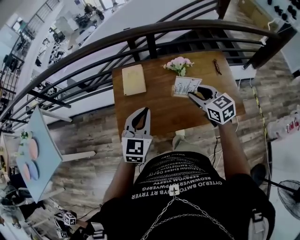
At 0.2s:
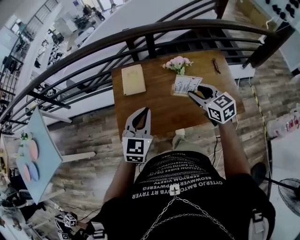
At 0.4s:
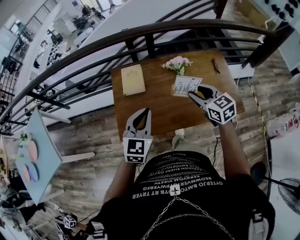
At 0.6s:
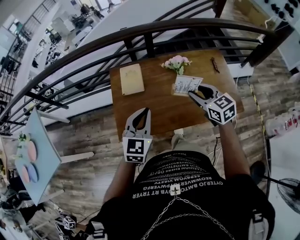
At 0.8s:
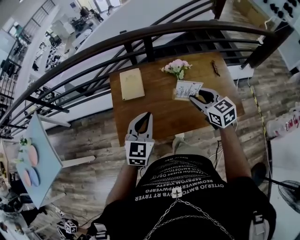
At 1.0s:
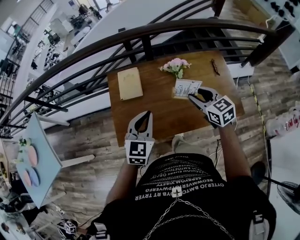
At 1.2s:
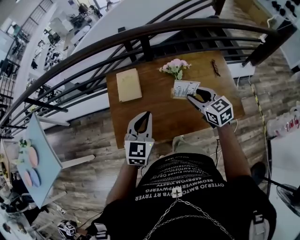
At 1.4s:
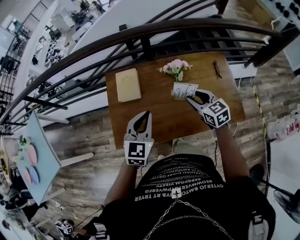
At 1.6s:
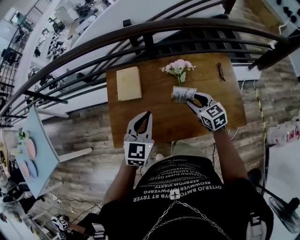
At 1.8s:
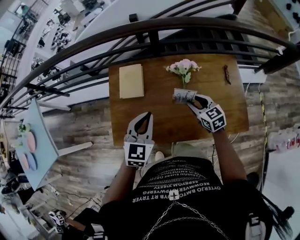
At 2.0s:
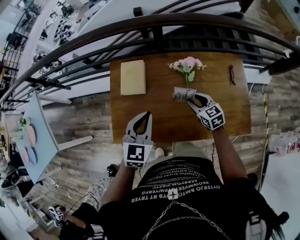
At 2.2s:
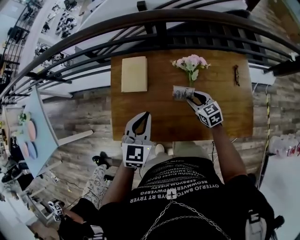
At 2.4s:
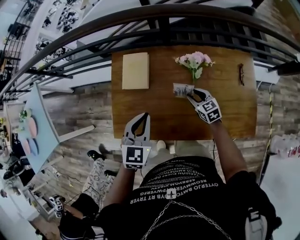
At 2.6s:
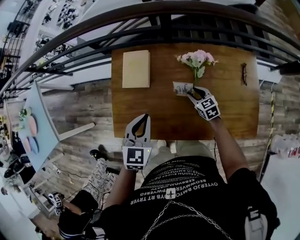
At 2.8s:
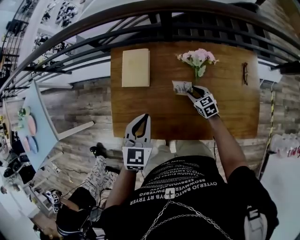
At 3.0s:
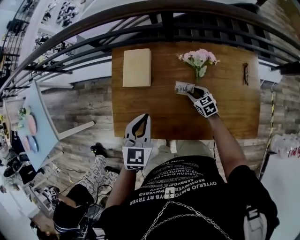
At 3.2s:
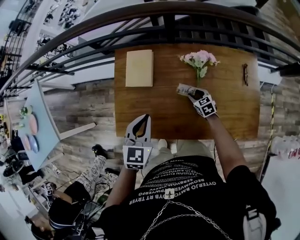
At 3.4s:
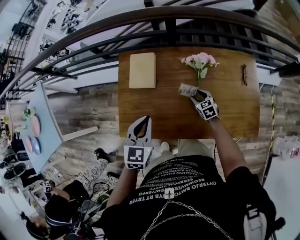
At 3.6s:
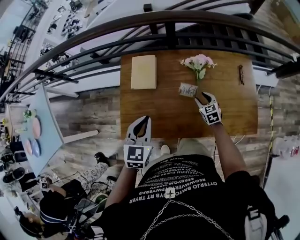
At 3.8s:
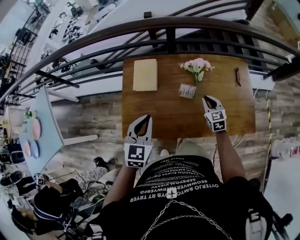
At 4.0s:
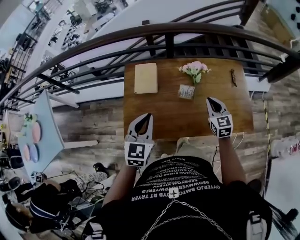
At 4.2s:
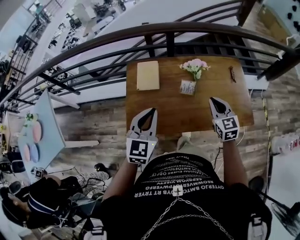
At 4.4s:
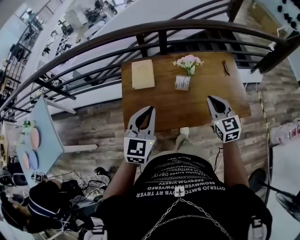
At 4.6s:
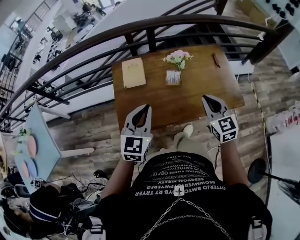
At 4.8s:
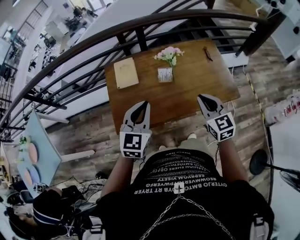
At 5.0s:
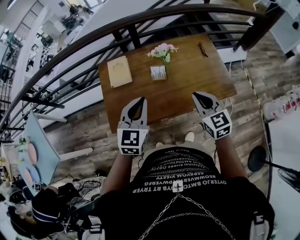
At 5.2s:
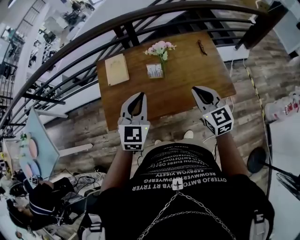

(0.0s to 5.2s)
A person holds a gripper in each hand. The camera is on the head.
0.0s - 1.8s: The right gripper goes about 15 cm downward and forward. The left gripper shifts about 10 cm forward and downward.
1.8s - 3.4s: The right gripper travels downward by about 20 cm, while the left gripper moves to the left, about 5 cm.
3.4s - 5.2s: The right gripper is displaced upward and backward by approximately 40 cm, rotates some 30 degrees, and closes, while the left gripper is displaced to the right, upward and backward by roughly 20 cm, and turns by roughly 20 degrees.

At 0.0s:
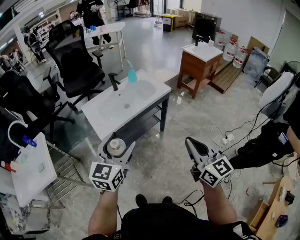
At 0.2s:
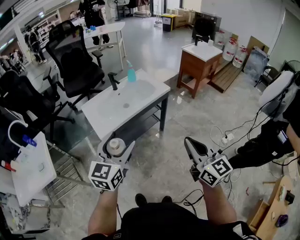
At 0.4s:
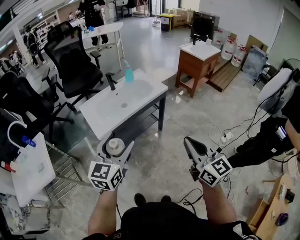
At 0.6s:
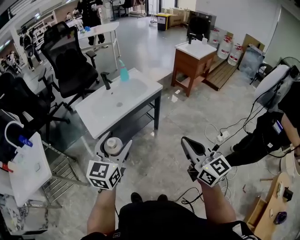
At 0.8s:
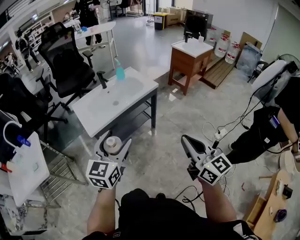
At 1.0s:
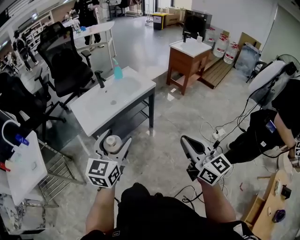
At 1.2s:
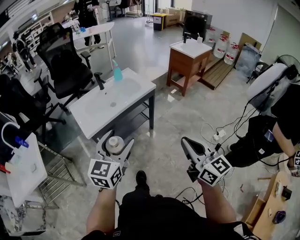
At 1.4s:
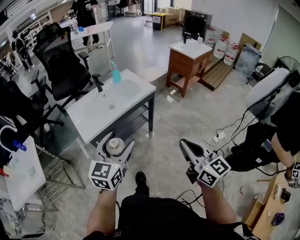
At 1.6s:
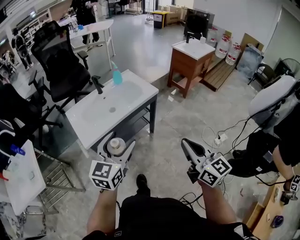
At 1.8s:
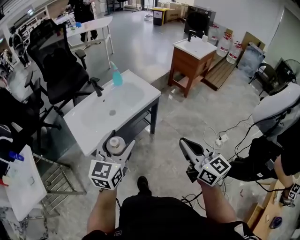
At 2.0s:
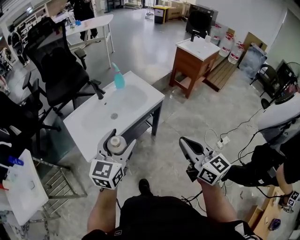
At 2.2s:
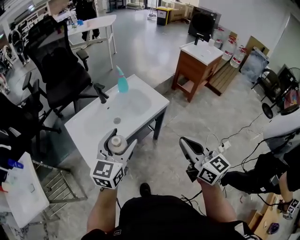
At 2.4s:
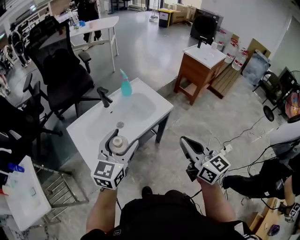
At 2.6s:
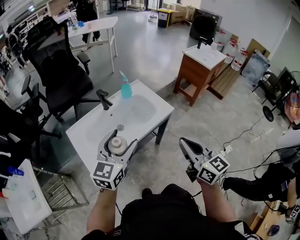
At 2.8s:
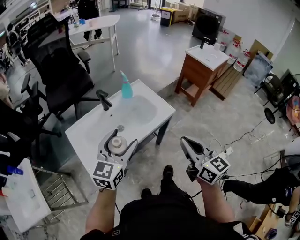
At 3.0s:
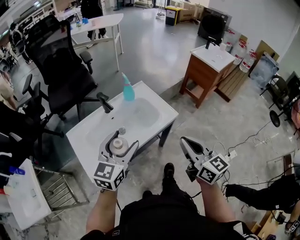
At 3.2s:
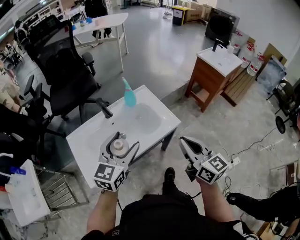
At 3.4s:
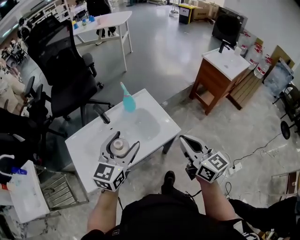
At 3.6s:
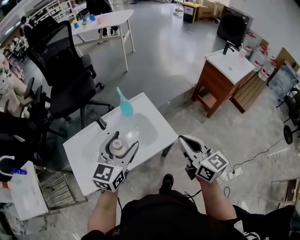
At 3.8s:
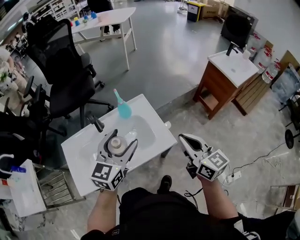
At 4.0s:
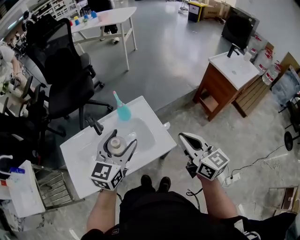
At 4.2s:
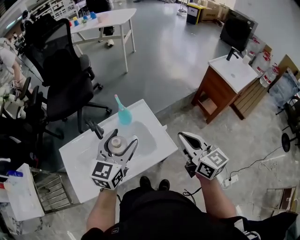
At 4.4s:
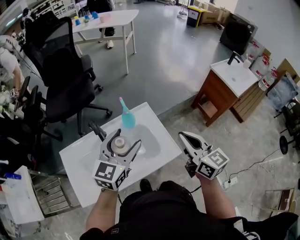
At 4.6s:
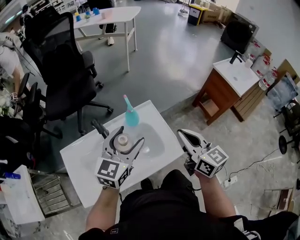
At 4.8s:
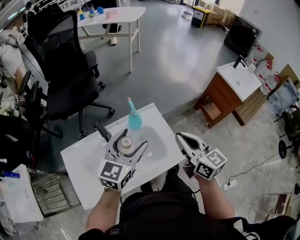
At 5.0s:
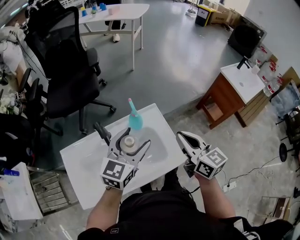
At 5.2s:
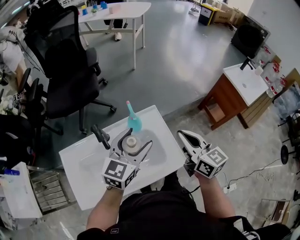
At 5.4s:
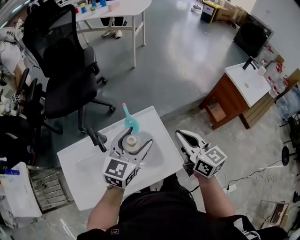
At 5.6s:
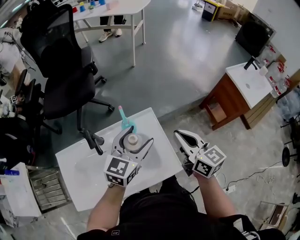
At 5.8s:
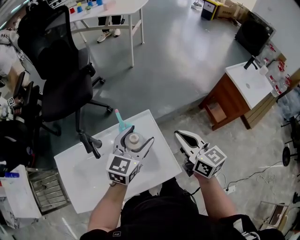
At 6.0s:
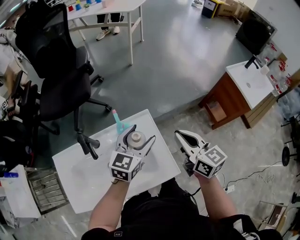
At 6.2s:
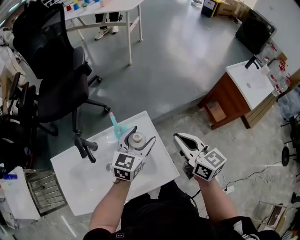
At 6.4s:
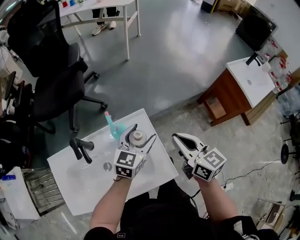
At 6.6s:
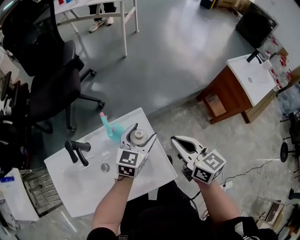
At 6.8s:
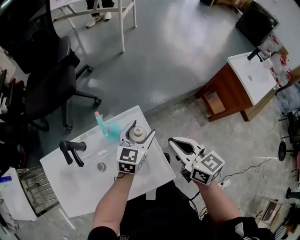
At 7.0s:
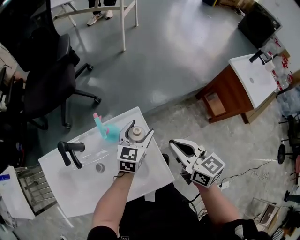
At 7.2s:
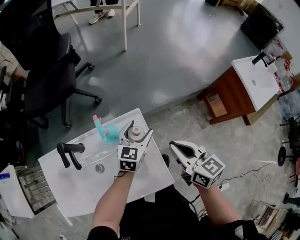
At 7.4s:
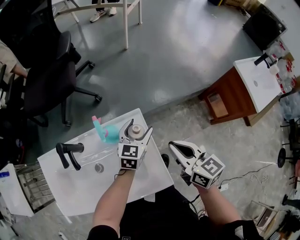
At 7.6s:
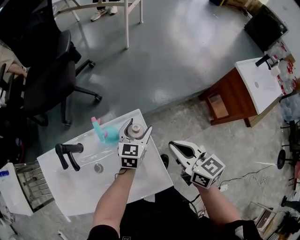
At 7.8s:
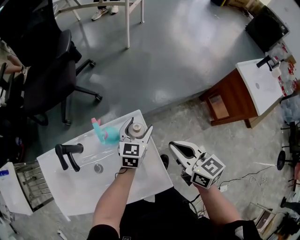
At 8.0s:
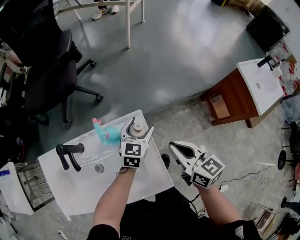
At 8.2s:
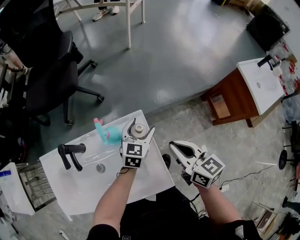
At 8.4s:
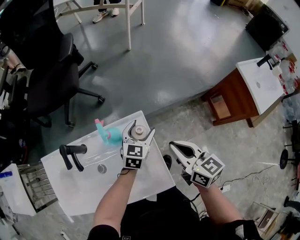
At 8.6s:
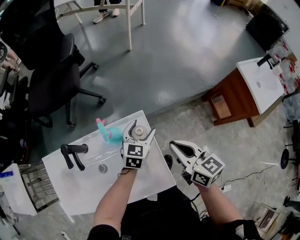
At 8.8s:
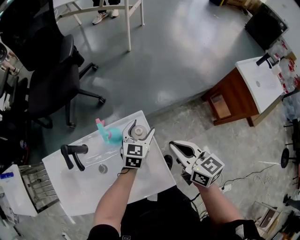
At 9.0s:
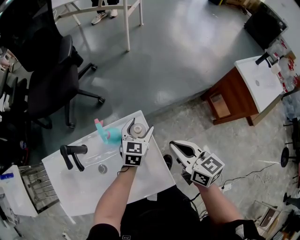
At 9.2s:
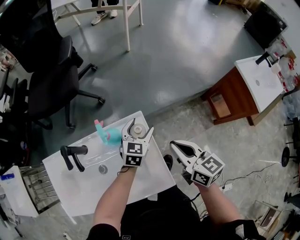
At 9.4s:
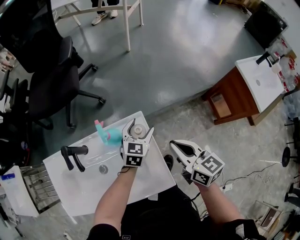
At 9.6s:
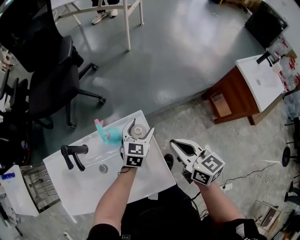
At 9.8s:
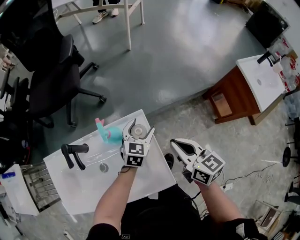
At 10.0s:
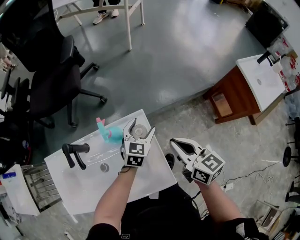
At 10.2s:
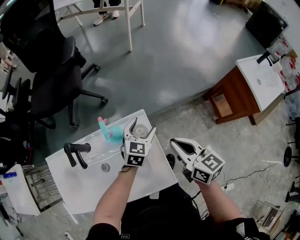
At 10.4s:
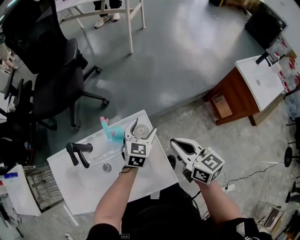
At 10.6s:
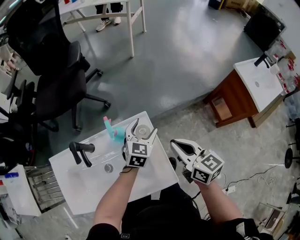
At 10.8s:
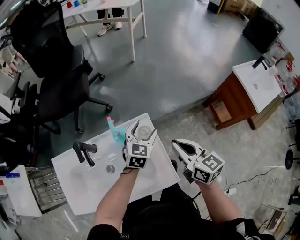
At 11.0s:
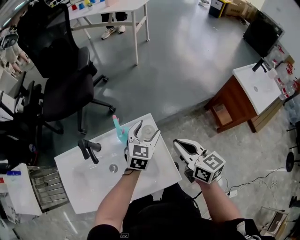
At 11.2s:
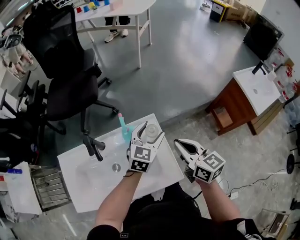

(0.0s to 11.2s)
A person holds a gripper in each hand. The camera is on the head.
0.0s - 1.6s: The two grippers go roughly 10 cm to the right and forward.
1.6s - 3.2s: The grippers both shift forward by approximately 35 cm.
3.2s - 4.8s: The two grippers go roughly 25 cm forward.
4.8s - 6.4s: The left gripper shifts about 25 cm forward, downward and to the right. Meanwhile the right gripper is displaced forward, to the right and downward by approximately 15 cm.
6.4s - 8.0s: The left gripper moves downward and forward, some 15 cm. Meanwhile the right gripper shifts approximately 5 cm downward.
8.0s - 9.6s: The grippers stay close to where they were, moving slightly.
9.6s - 11.2s: The right gripper shifts some 5 cm upward; the left gripper moves upward and backward, roughly 15 cm.

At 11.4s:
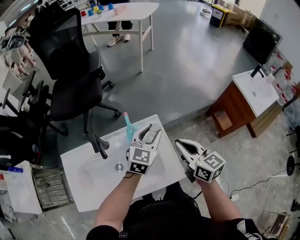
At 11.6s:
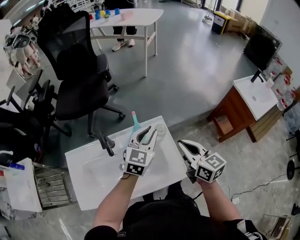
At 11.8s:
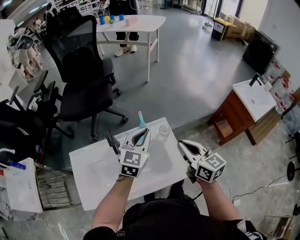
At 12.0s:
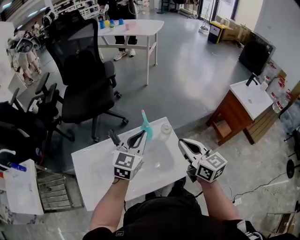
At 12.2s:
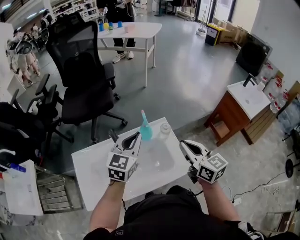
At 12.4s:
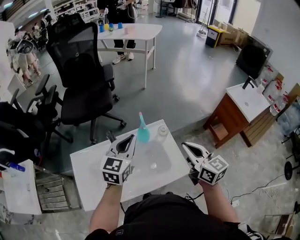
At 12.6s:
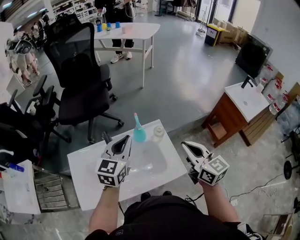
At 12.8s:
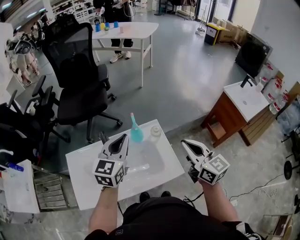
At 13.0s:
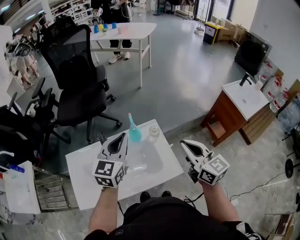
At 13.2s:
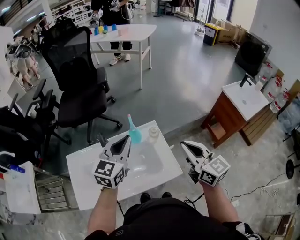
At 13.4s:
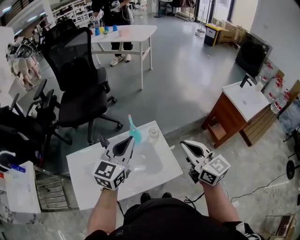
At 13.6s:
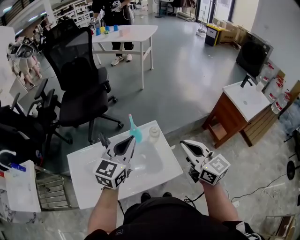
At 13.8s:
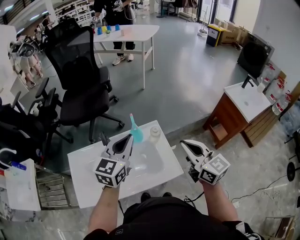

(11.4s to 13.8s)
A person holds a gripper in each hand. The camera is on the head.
11.4s - 12.6s: The left gripper moves to the left, upward and backward, approximately 20 cm, and closes. The right gripper is displaced upward and backward by roughly 10 cm.
12.6s - 13.8s: The left gripper ends up roughly 5 cm from where it was.

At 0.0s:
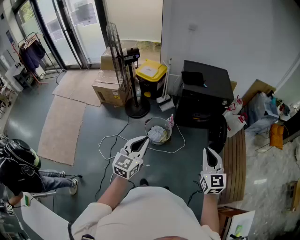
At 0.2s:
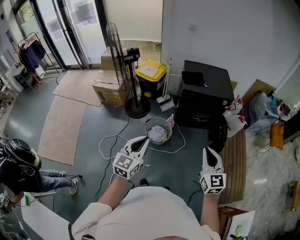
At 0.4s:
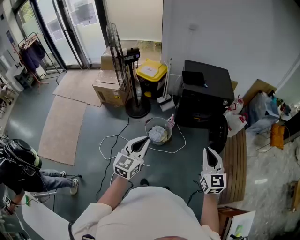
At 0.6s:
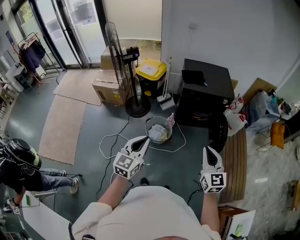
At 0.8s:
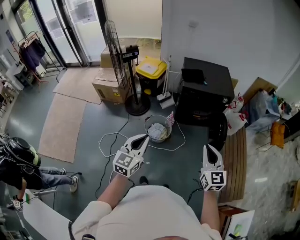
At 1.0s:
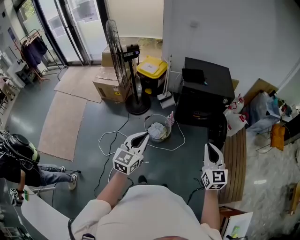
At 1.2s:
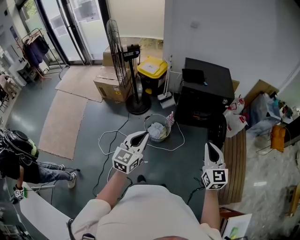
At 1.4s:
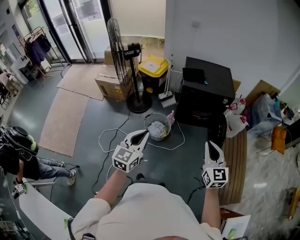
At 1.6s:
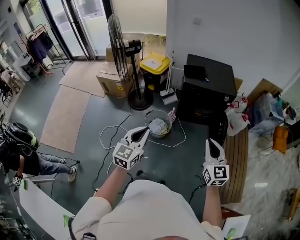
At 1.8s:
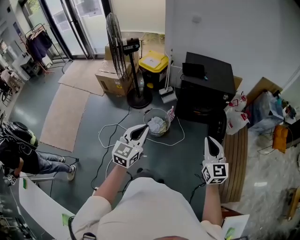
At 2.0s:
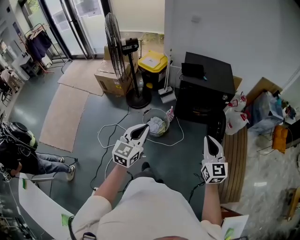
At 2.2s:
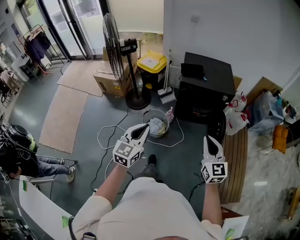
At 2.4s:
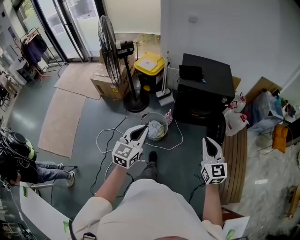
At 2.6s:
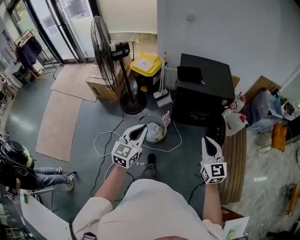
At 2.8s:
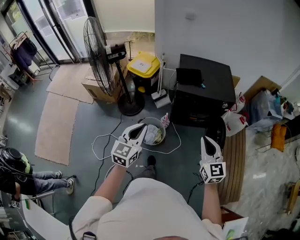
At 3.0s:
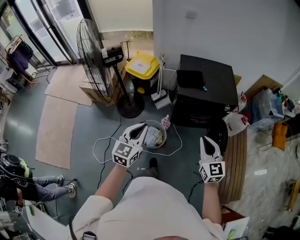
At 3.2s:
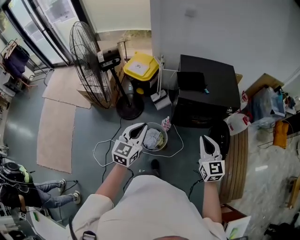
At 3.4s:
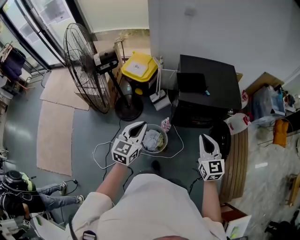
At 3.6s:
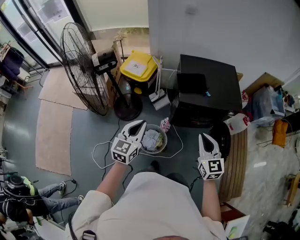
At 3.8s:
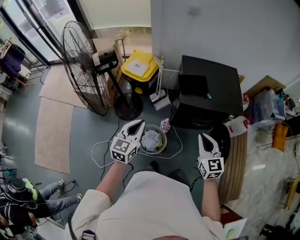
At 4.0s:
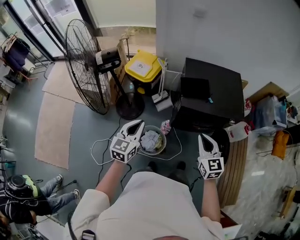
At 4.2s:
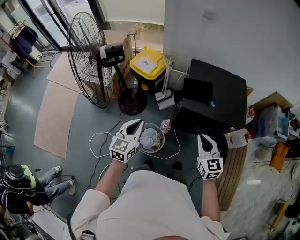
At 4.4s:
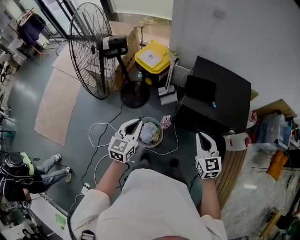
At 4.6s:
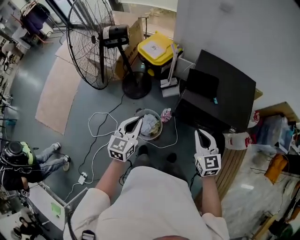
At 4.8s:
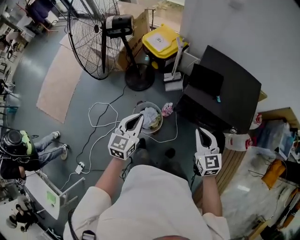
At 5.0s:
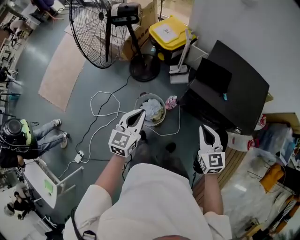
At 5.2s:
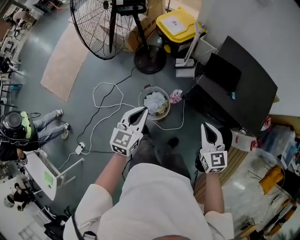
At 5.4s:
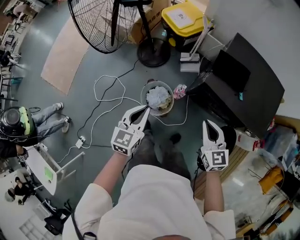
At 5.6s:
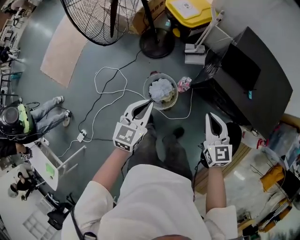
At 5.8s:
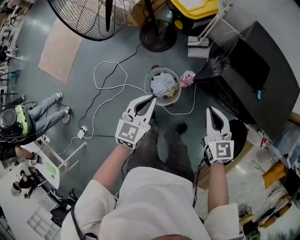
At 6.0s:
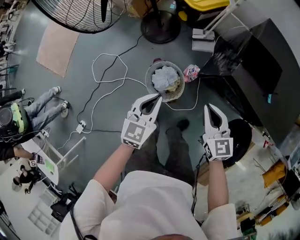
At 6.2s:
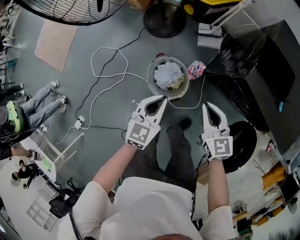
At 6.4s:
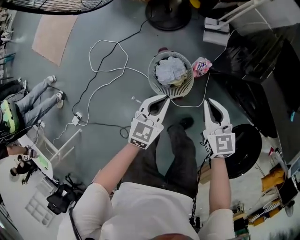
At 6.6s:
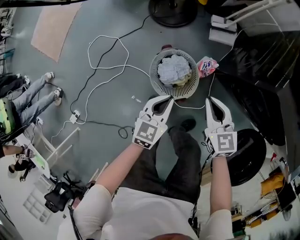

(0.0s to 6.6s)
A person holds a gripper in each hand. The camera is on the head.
0.0s - 1.6s: Both grippers travel together to the right, roughly 5 cm.
1.6s - 3.2s: The two grippers go some 30 cm forward.
3.2s - 5.0s: The left gripper travels downward by approximately 10 cm, and rotates roughly 30 degrees, while the right gripper changes place by some 20 cm, and turns by about 30 degrees.
5.0s - 6.6s: The left gripper moves downward, approximately 40 cm. Meanwhile the right gripper is displaced downward and to the left by some 40 cm.
